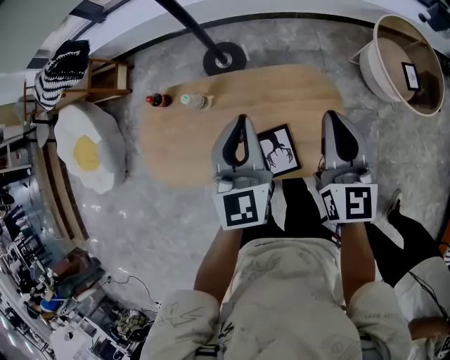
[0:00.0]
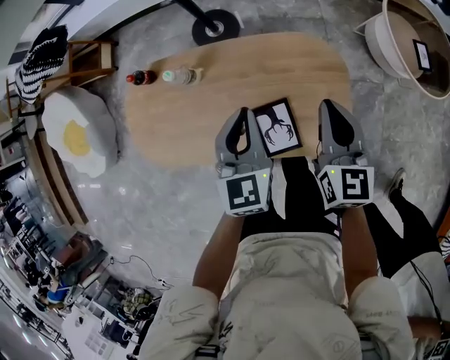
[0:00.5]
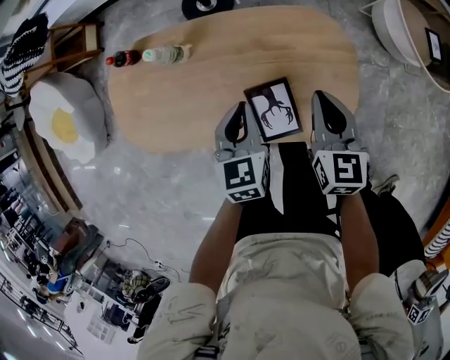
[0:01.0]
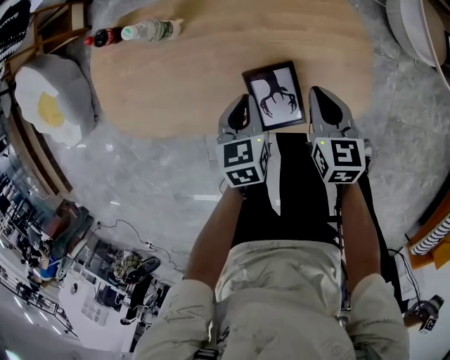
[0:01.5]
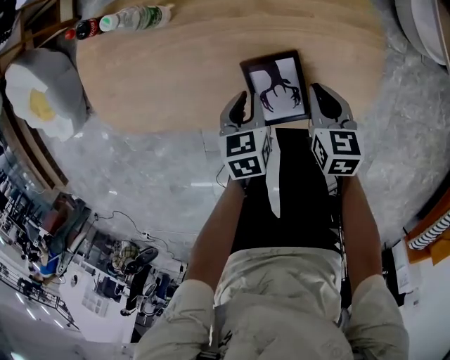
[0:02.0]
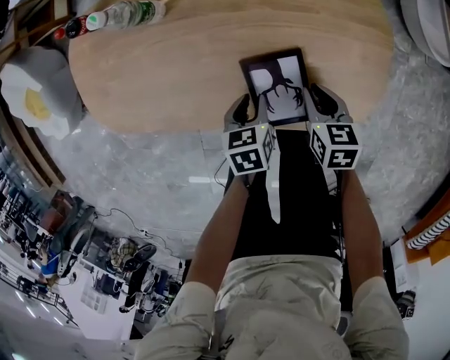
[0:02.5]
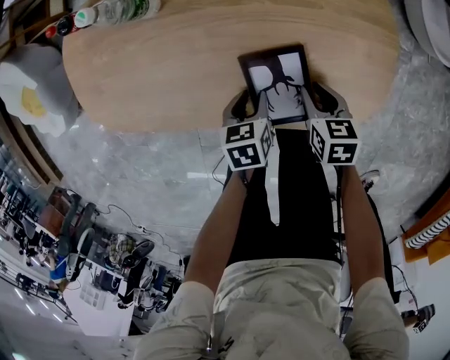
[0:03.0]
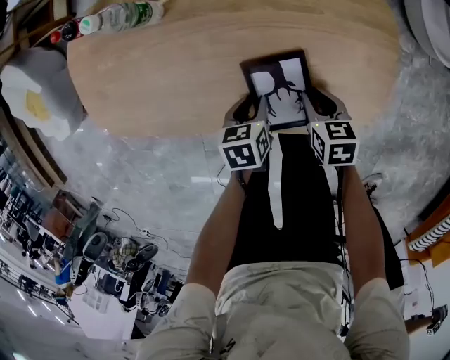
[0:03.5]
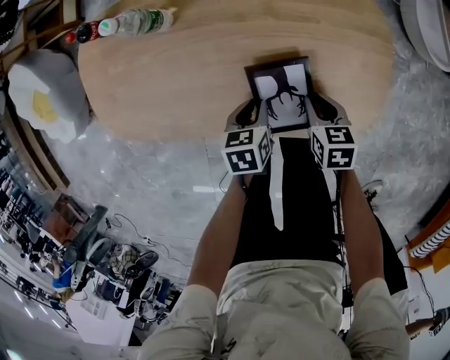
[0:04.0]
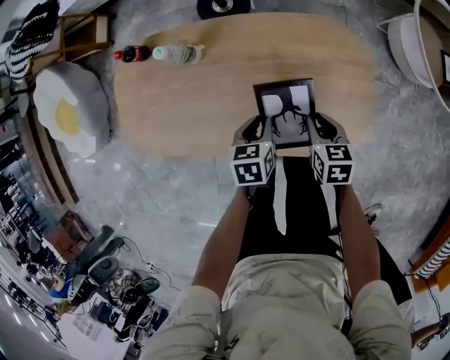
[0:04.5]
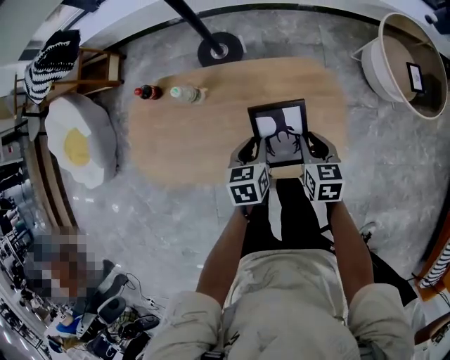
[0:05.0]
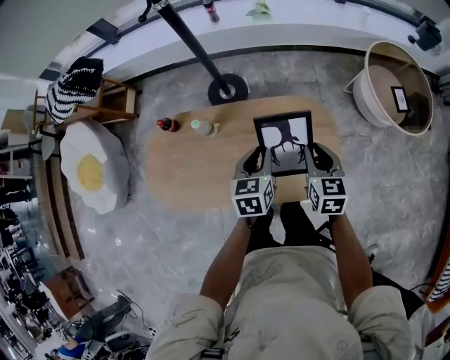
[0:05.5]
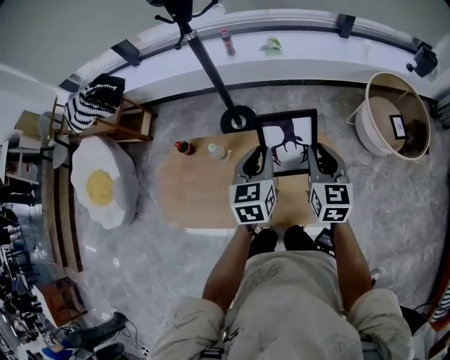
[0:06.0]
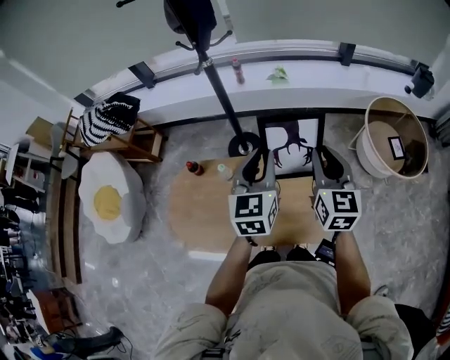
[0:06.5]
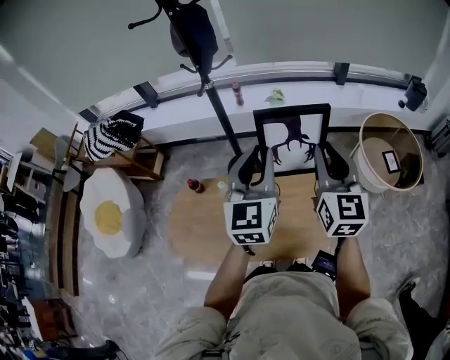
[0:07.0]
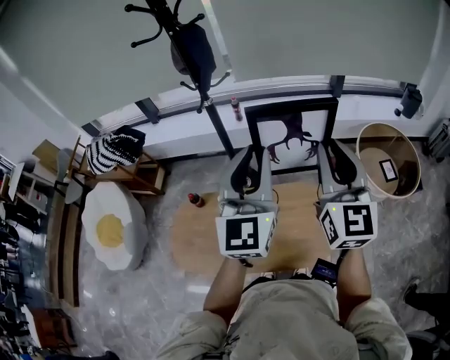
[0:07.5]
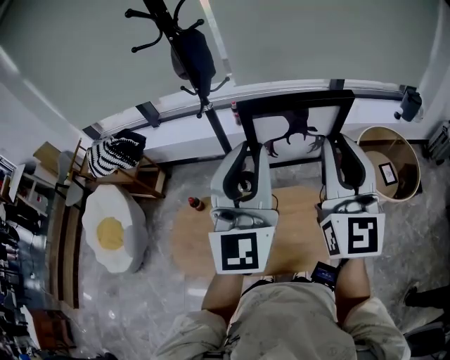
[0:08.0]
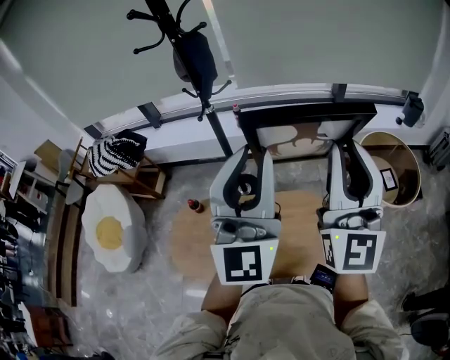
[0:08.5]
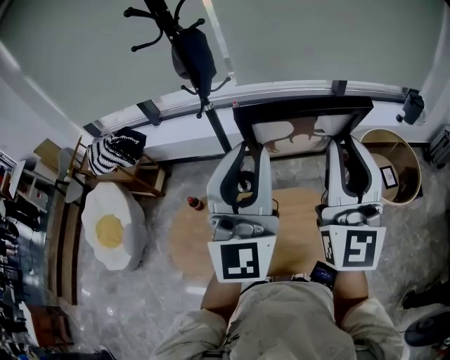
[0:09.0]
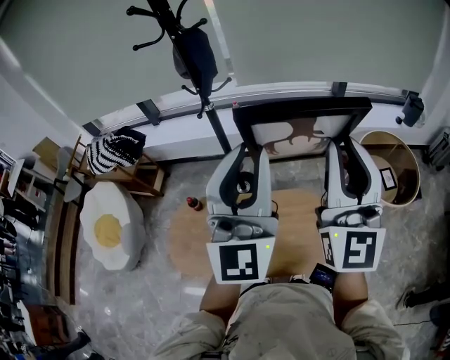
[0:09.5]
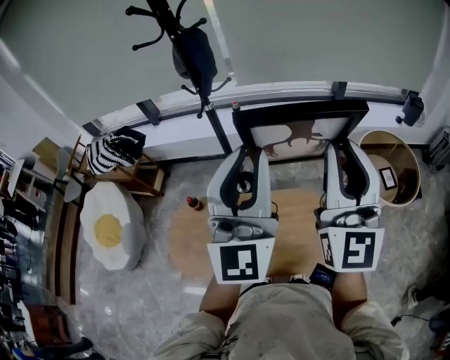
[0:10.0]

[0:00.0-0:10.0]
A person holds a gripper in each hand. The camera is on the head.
0:00.0 to 0:02.0: The two grippers go roughly 40 cm downward. The right gripper points its fingers about 40 degrees further downward. Meanwhile the left gripper tilts its fingers approximately 40 degrees downward.
0:02.0 to 0:04.0: The right gripper is displaced downward by some 5 cm.
0:04.0 to 0:06.0: Both grippers move upward, about 50 cm. The right gripper tips its fingers upward by approximately 40 degrees. Meanwhile the left gripper angles its fingers upward, by approximately 40 degrees.
0:06.0 to 0:08.0: Both grippers travel together upward, approximately 35 cm. The right gripper tilts its fingers some 40 degrees upward, while the left gripper angles its fingers upward, by approximately 40 degrees.
0:08.0 to 0:10.0: The grippers stay close to where they were, moving slightly.

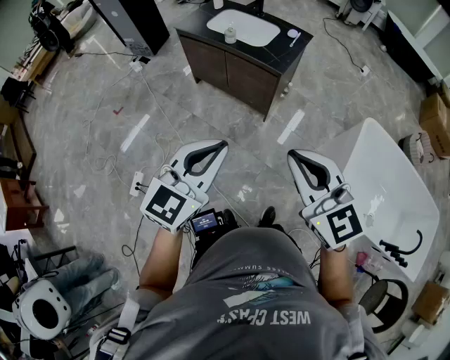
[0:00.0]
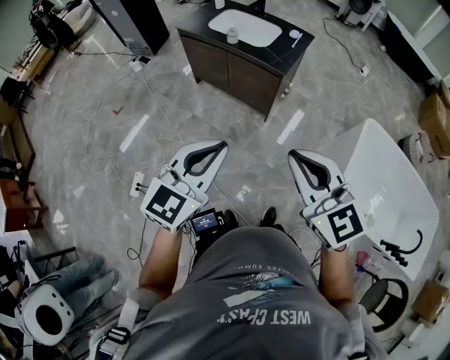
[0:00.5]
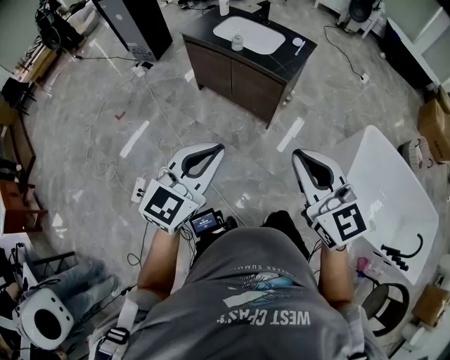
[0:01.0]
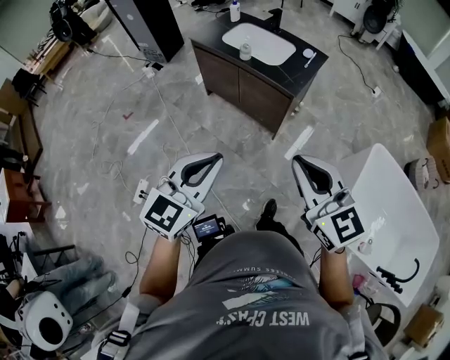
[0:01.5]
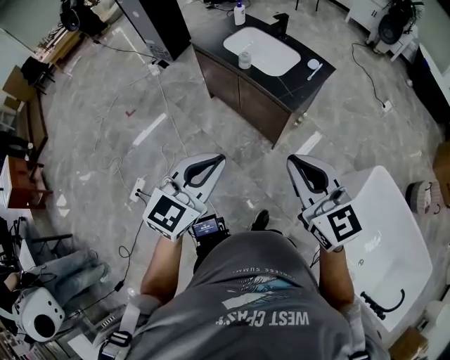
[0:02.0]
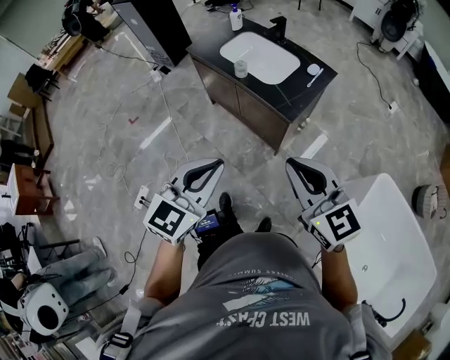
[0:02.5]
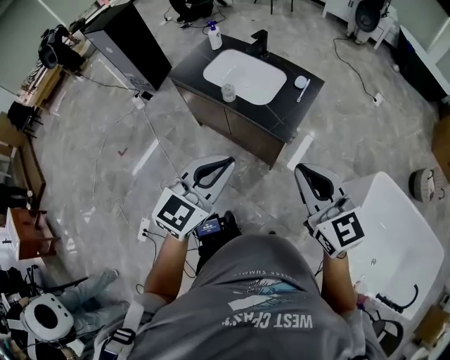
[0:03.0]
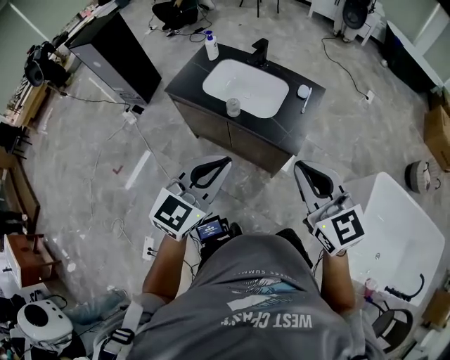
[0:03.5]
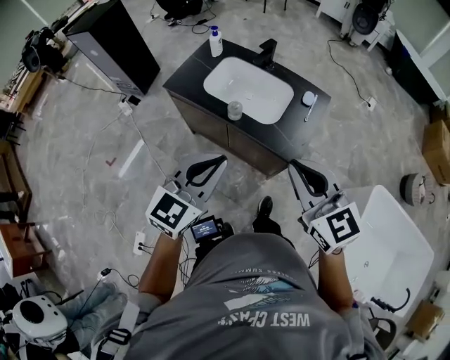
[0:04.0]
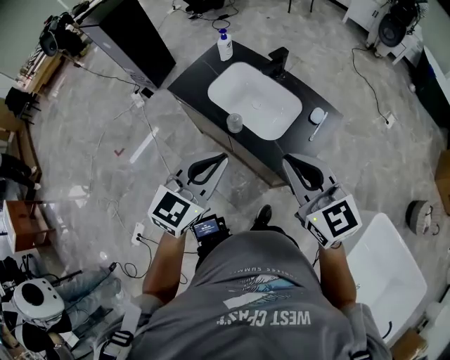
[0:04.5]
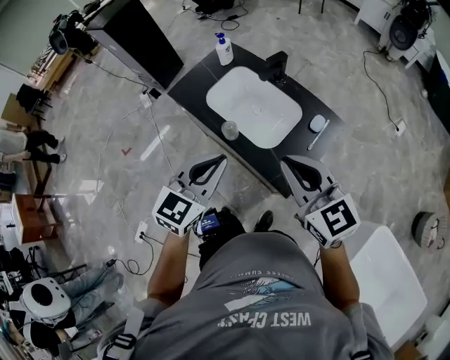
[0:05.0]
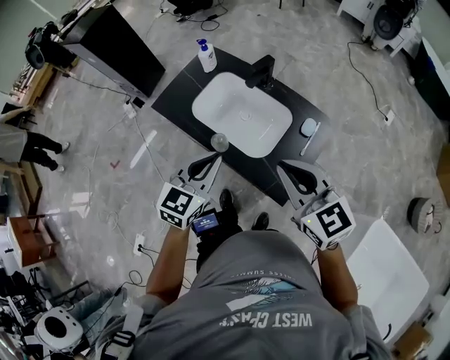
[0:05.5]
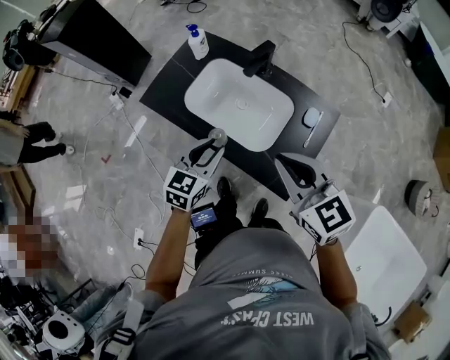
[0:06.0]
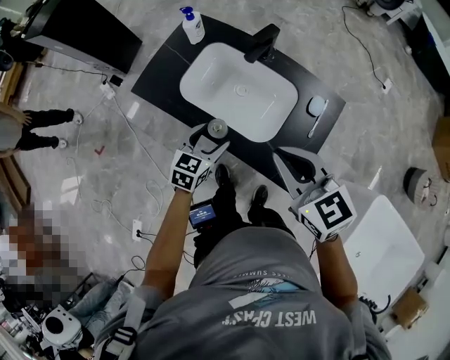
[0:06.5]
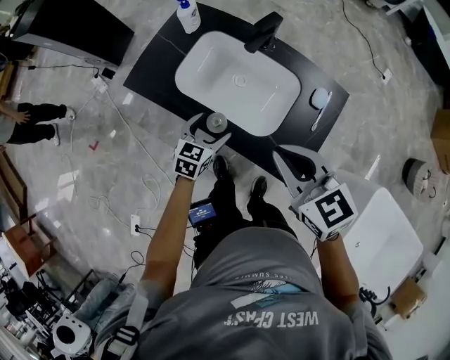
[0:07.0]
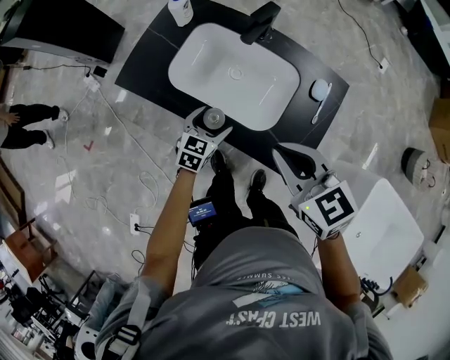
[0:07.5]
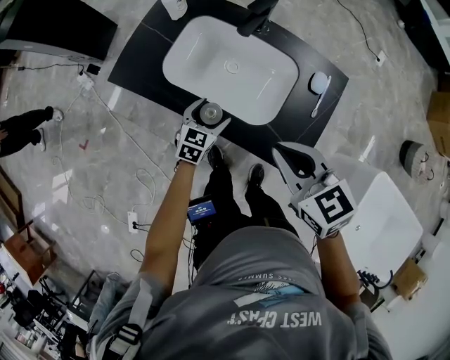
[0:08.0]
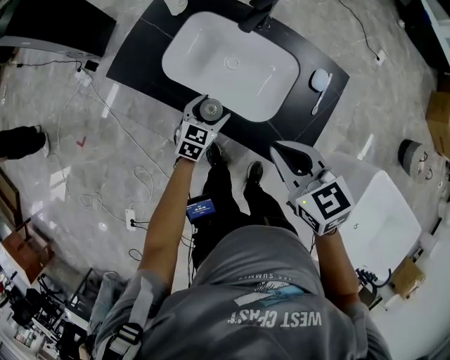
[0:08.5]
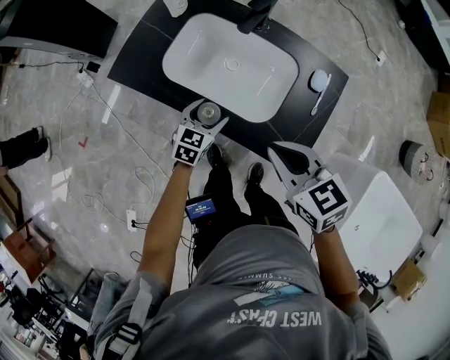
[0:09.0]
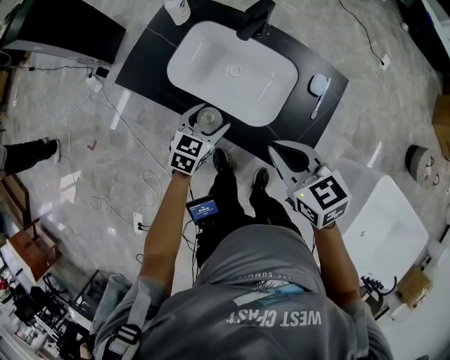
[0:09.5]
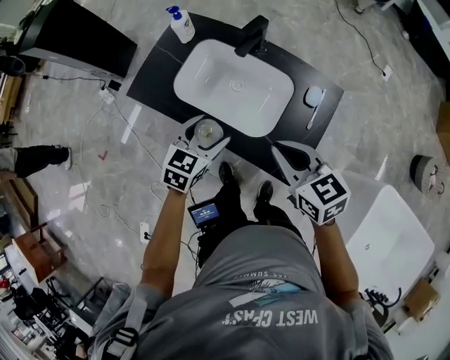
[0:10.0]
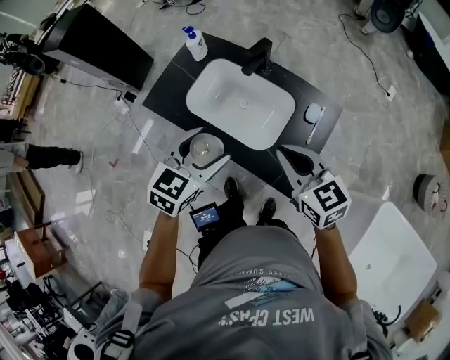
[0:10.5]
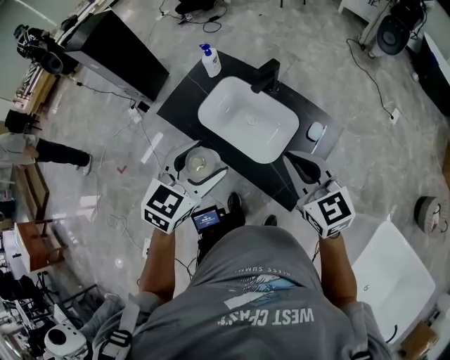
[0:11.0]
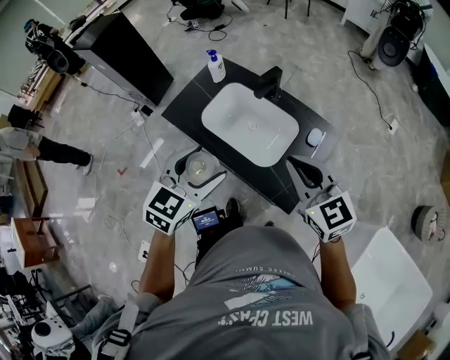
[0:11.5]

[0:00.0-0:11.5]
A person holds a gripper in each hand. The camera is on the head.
0:00.0 to 0:02.0: The grippers both shift forward by roughly 15 cm.
0:02.0 to 0:04.0: The grippers both shift forward by about 25 cm.
0:04.0 to 0:06.0: The right gripper moves forward, approximately 20 cm; the left gripper goes some 30 cm forward and downward, and swivels roughly 20 degrees.
0:06.0 to 0:07.5: The right gripper goes approximately 5 cm downward; the left gripper moves downward, roughly 20 cm, and opens.
0:07.5 to 0:09.5: The left gripper travels upward by roughly 5 cm.
0:09.5 to 0:11.5: The right gripper moves upward, about 15 cm, and rotates approximately 30 degrees. The left gripper heads upward, covering roughly 25 cm.

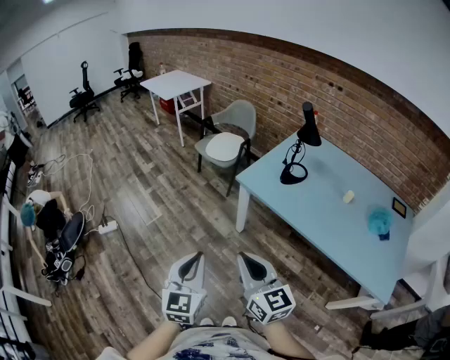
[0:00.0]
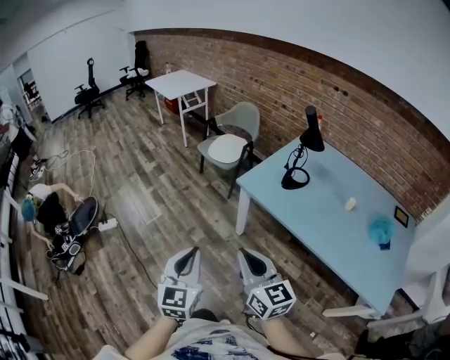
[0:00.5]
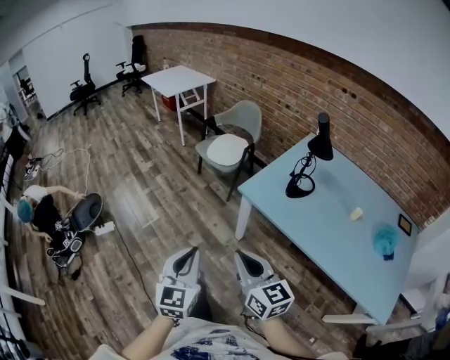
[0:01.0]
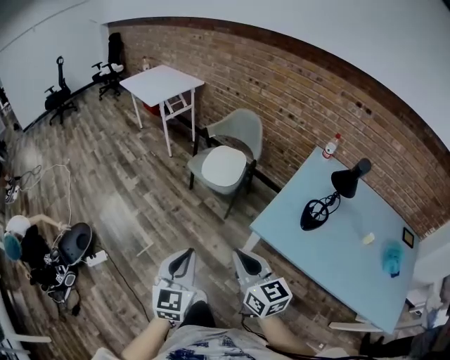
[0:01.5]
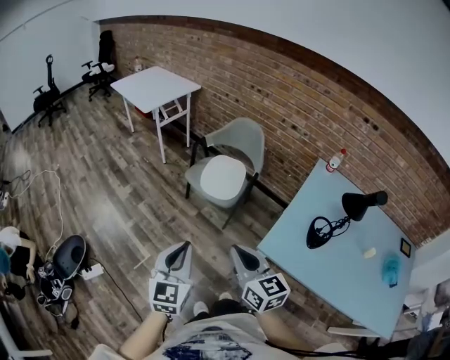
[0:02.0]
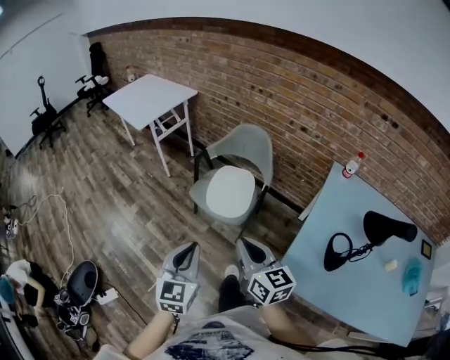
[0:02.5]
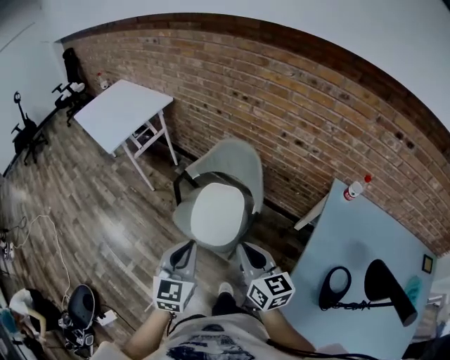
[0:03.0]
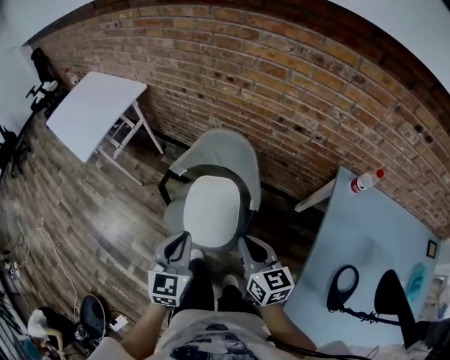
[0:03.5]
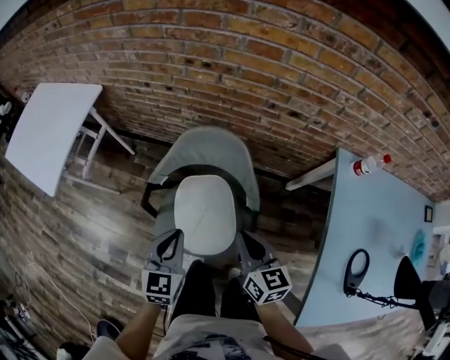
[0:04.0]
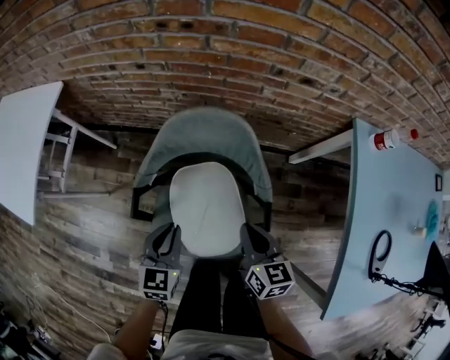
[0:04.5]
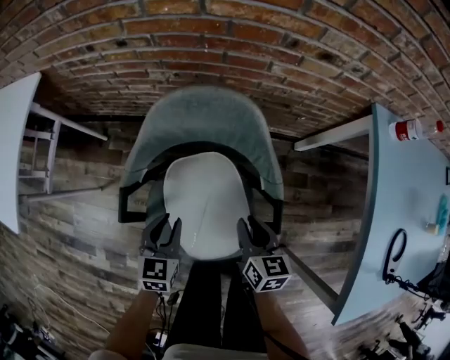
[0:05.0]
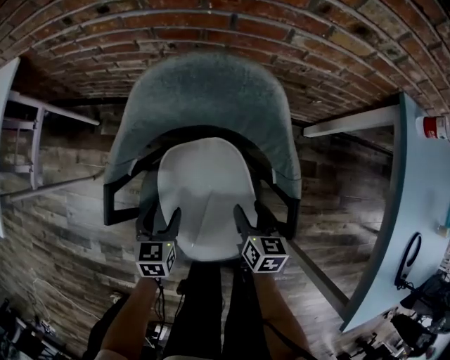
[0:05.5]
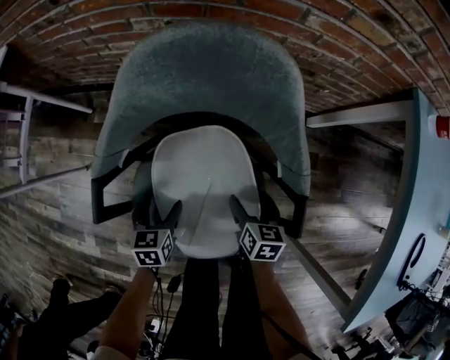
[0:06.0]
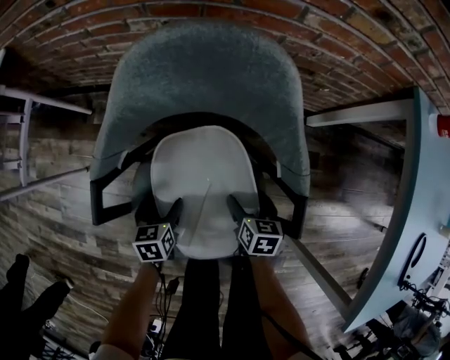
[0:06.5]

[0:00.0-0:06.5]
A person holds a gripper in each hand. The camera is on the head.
0:00.0 to 0:02.0: Both grippers are carried forward, about 50 cm.
0:02.0 to 0:04.5: Both grippers are carried approximately 70 cm. The right gripper rotates approximately 50 degrees. Meanwhile the left gripper rotates roughly 40 degrees.
0:04.5 to 0:06.5: Both grippers travel together downward, roughly 35 cm. The right gripper rotates roughly 20 degrees, and opens. The left gripper turns by some 30 degrees, and opens up.
